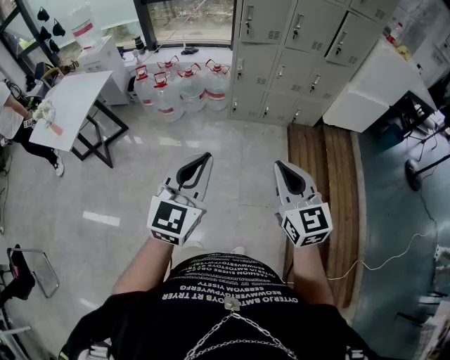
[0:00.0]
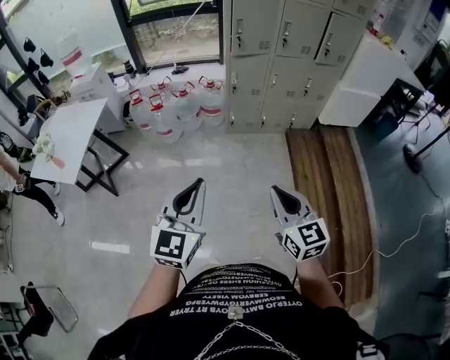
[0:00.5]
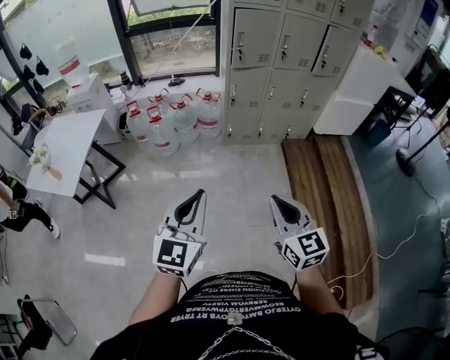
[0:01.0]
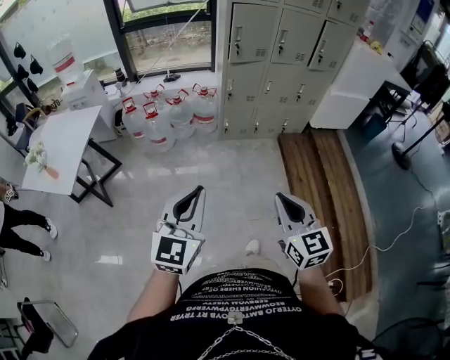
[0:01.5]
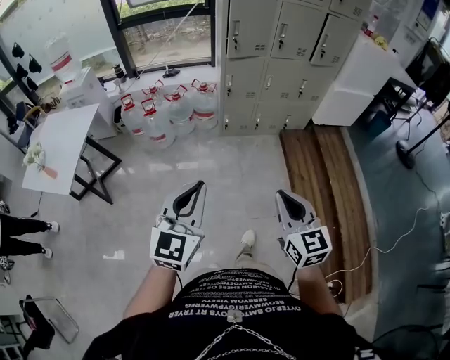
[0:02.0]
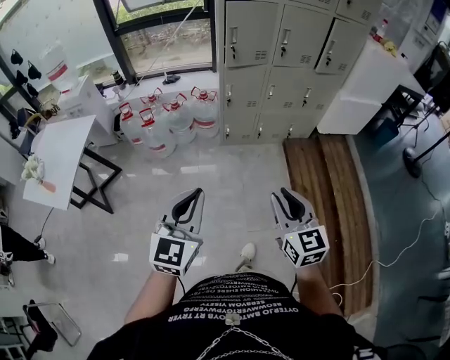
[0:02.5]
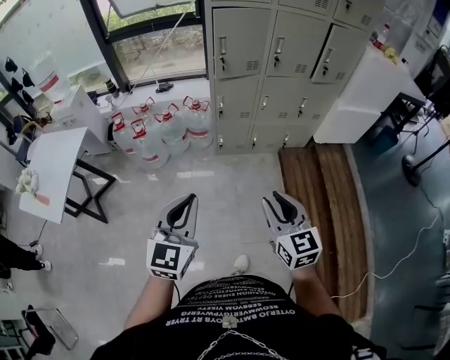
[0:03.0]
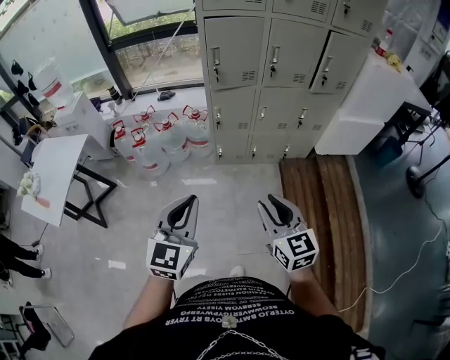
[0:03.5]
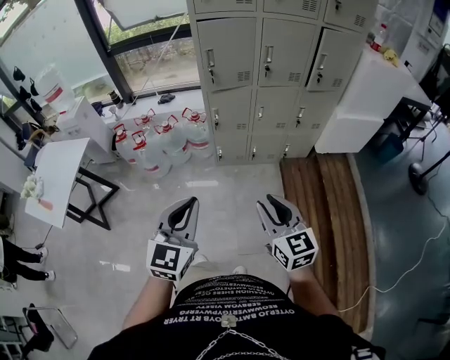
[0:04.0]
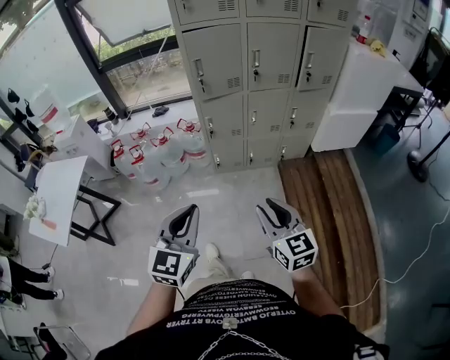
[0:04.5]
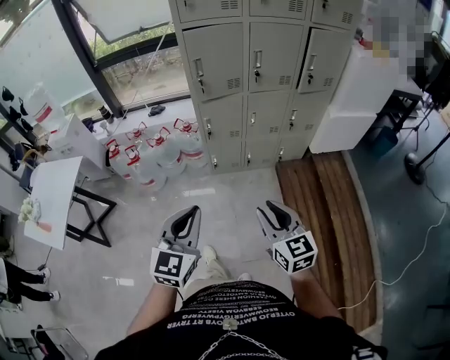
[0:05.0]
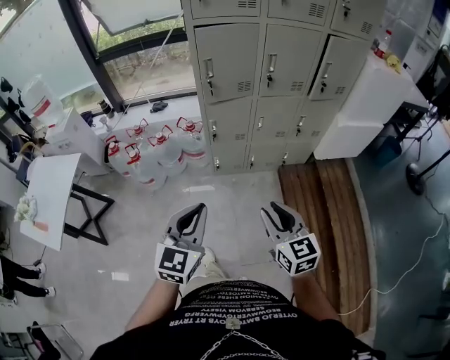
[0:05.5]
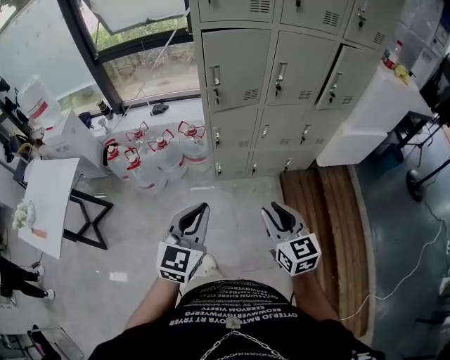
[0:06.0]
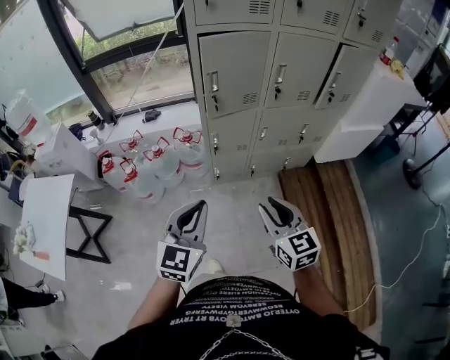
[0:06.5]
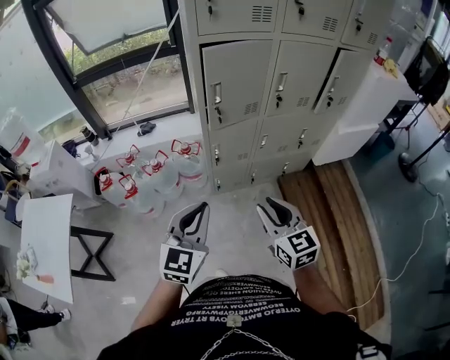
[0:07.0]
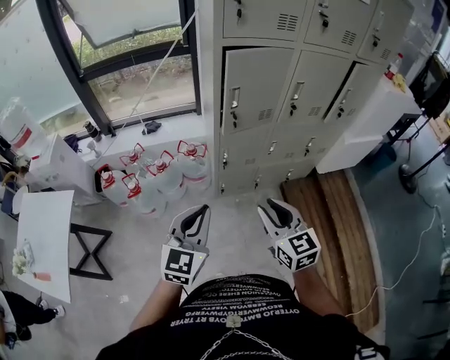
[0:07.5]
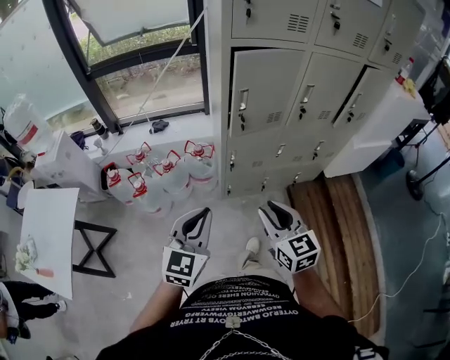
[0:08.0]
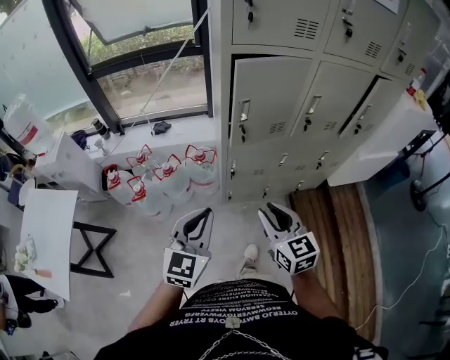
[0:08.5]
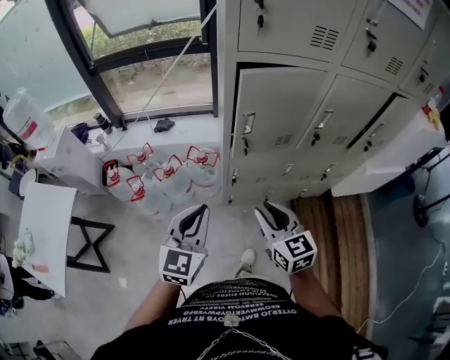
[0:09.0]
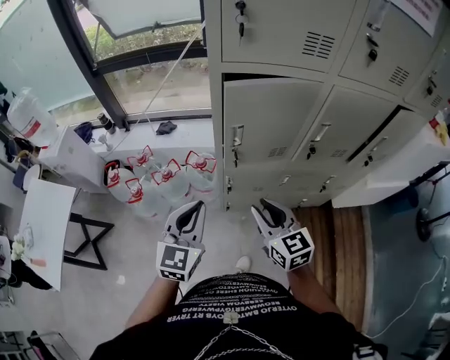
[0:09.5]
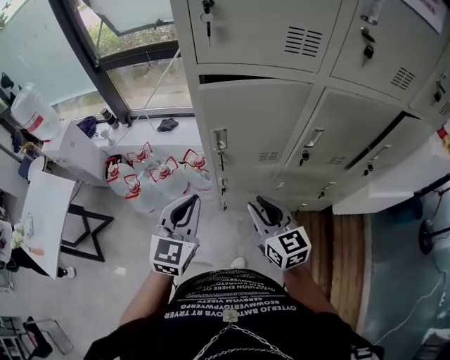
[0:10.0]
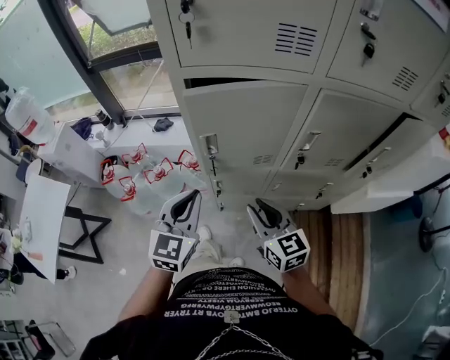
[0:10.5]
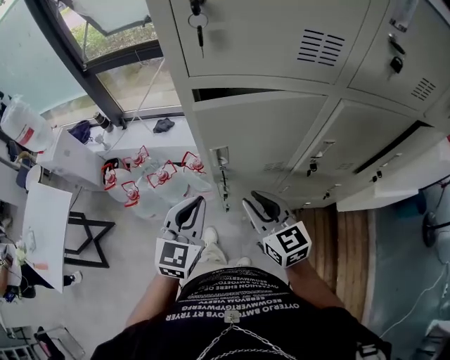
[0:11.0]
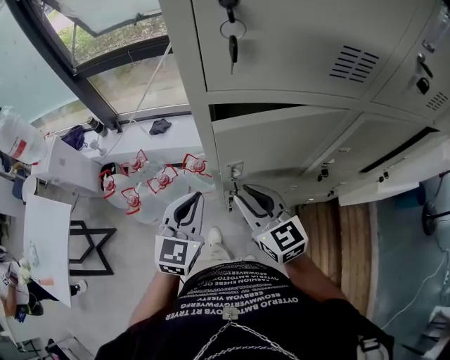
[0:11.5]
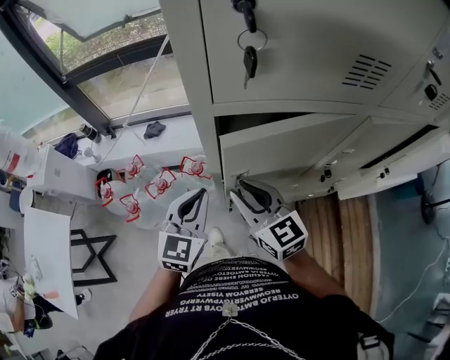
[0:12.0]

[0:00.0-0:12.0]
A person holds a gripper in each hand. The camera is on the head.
0:00.0 to 0:02.0: Both grippers move to the left, some 10 cm.
0:02.0 to 0:04.0: Both grippers travel together forward and to the right, roughly 30 cm. The right gripper opens.
0:04.0 to 0:06.0: The grippers both shift forward by about 15 cm.
0:06.0 to 0:08.0: Both grippers travel together to the left and forward, roughly 20 cm.
0:08.0 to 0:10.0: The grippers both shift forward and to the right by about 25 cm.
0:10.0 to 0:12.0: The left gripper heads forward, covering roughly 15 cm; the right gripper shifts some 20 cm forward and to the left.

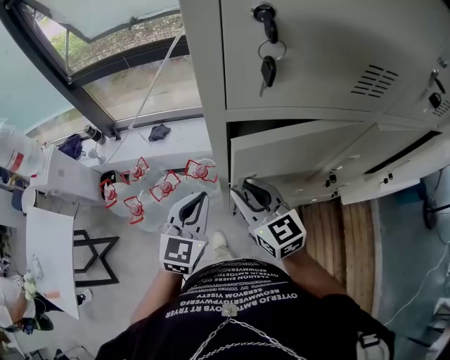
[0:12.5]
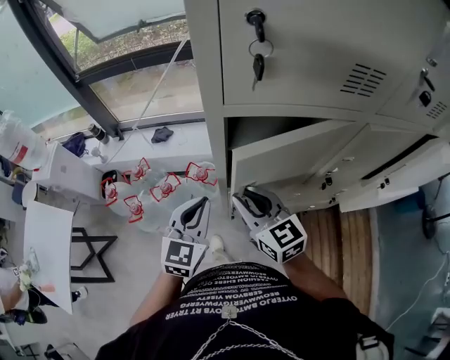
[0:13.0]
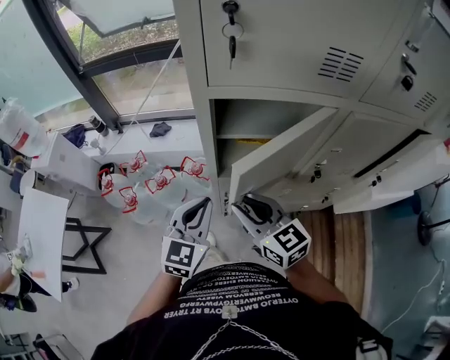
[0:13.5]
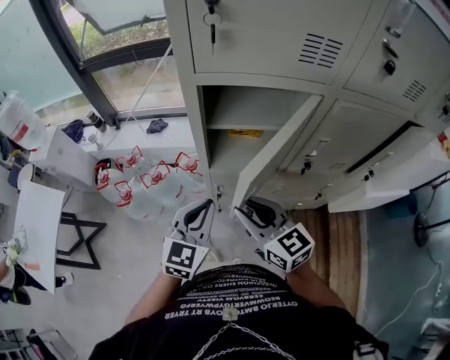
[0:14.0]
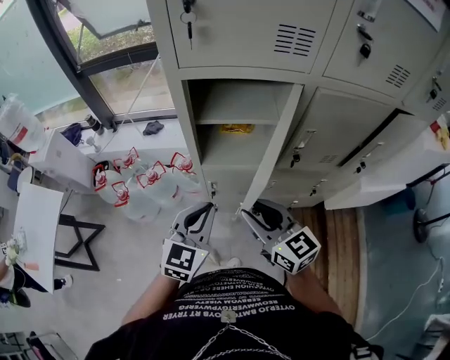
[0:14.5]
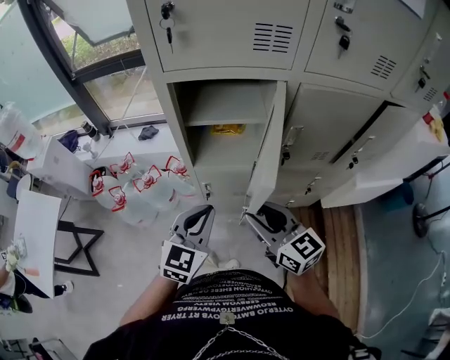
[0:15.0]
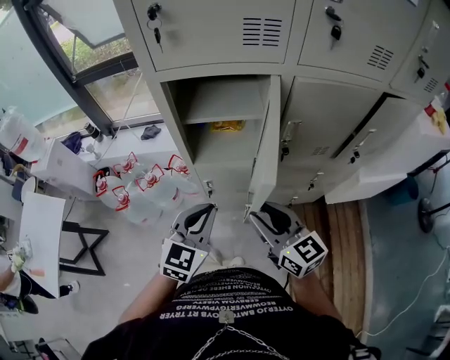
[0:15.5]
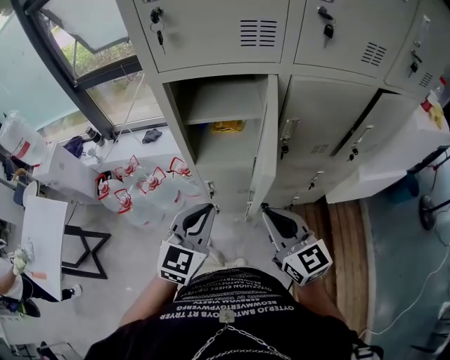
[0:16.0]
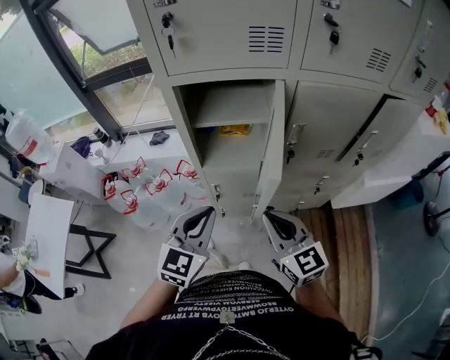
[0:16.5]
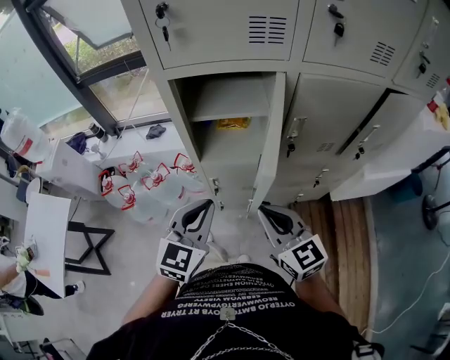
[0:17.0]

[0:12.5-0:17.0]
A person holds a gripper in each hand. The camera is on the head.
0:12.5 to 0:14.5: Both grippers move backward and to the right, roughly 20 cm.
0:14.5 to 0:17.0: The right gripper closes up.

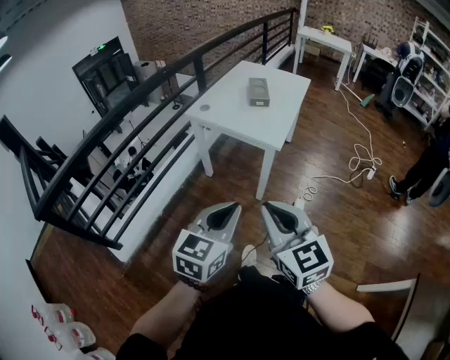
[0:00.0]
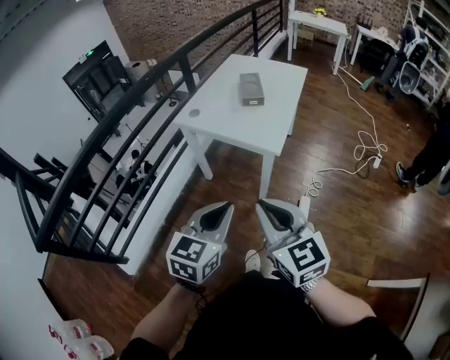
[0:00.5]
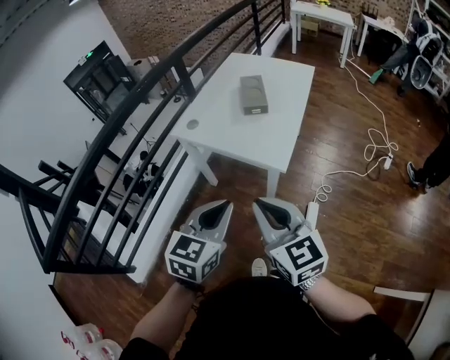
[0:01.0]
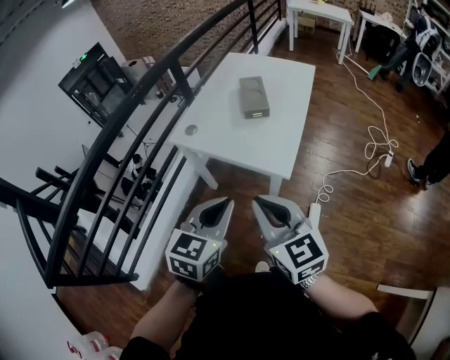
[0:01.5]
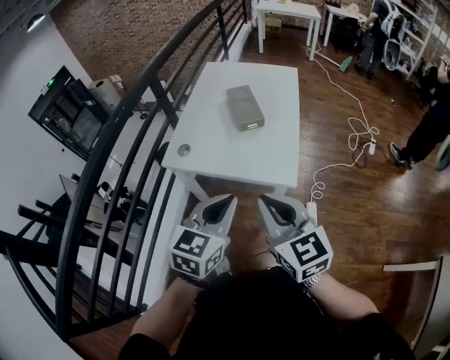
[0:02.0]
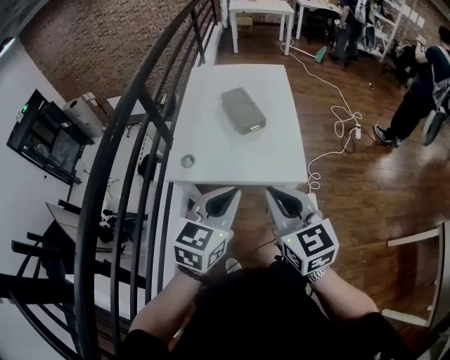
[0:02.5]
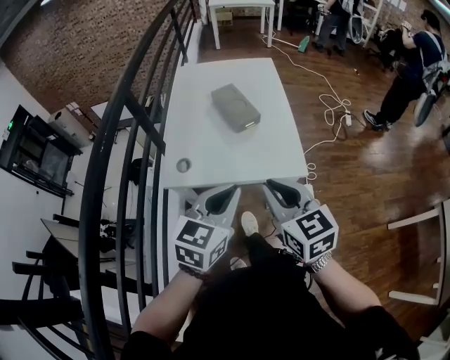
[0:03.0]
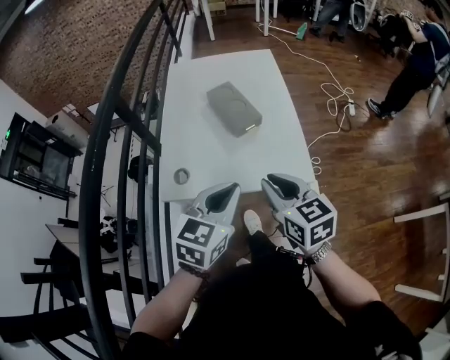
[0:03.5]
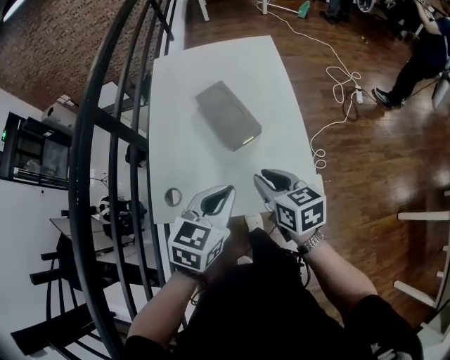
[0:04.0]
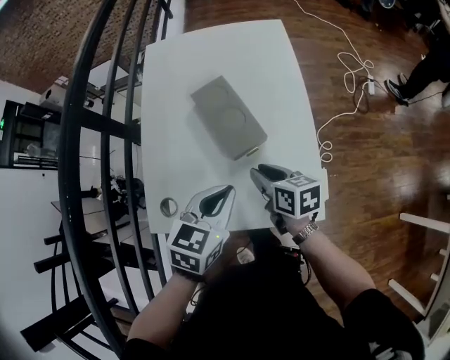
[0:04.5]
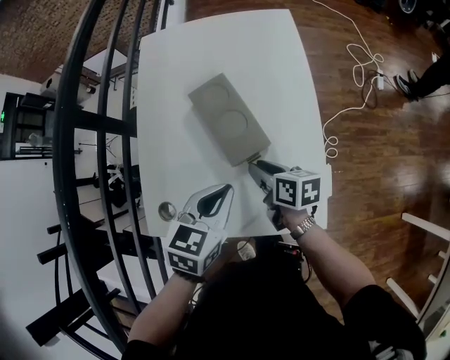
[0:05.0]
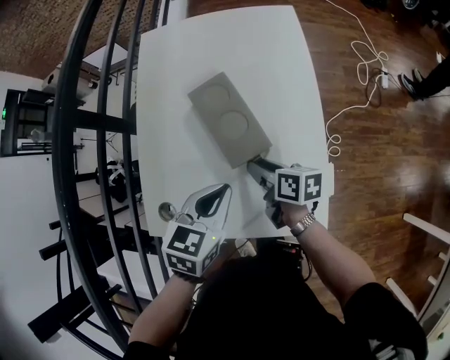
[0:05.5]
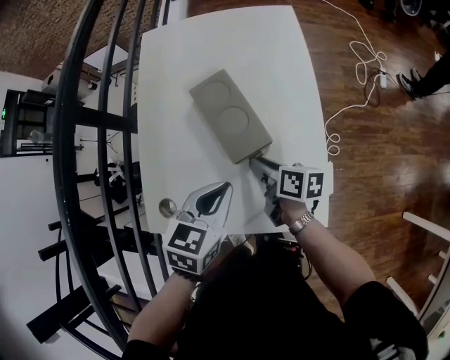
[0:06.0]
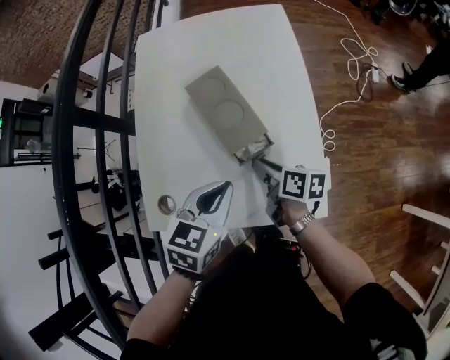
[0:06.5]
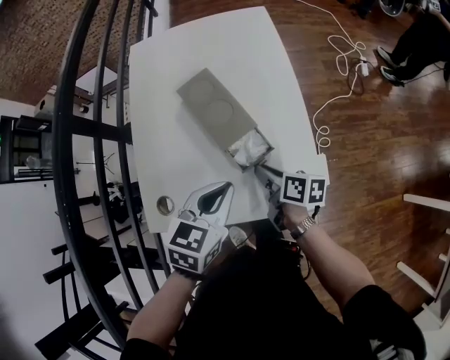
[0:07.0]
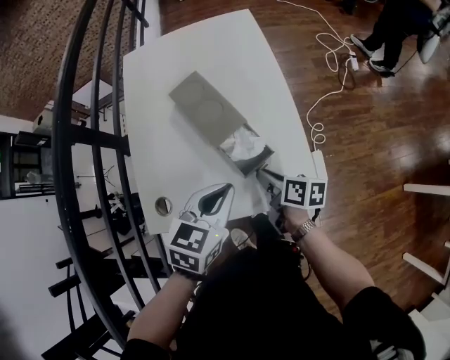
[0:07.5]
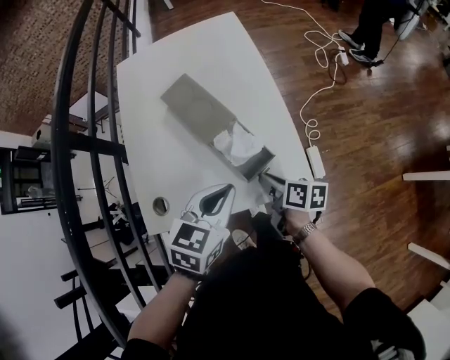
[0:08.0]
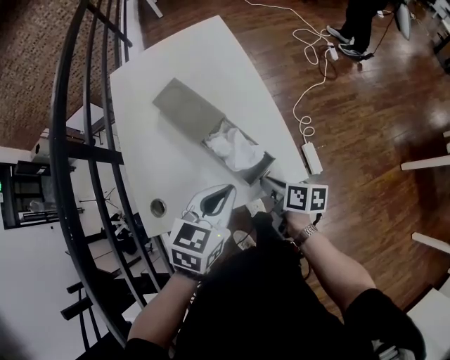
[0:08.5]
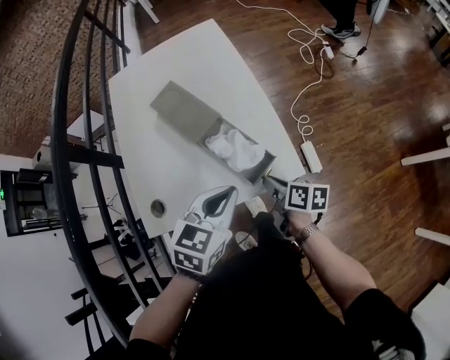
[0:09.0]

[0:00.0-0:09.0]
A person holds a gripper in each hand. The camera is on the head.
0:00.0 to 0:02.0: The two grippers go some 35 cm forward.
0:02.0 to 0:04.5: Both grippers move forward and downward, some 35 cm. The left gripper rotates some 20 degrees, while the right gripper rotates around the line of its fingers by approximately 40 degrees, clockwise from behind.
0:04.5 to 0:07.0: The right gripper moves some 5 cm, and rotates approximately 20 degrees.
0:07.0 to 0:09.0: Both grippers travel together backward and to the right, roughly 10 cm.

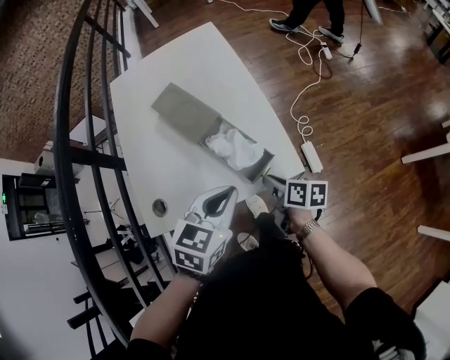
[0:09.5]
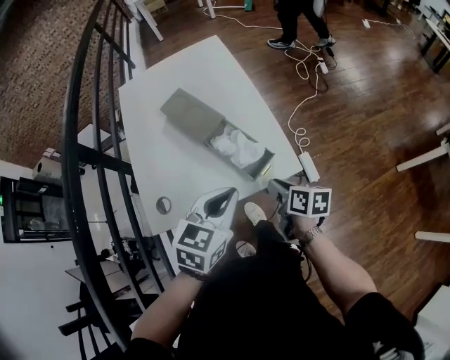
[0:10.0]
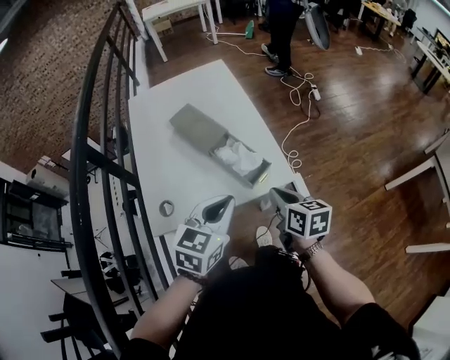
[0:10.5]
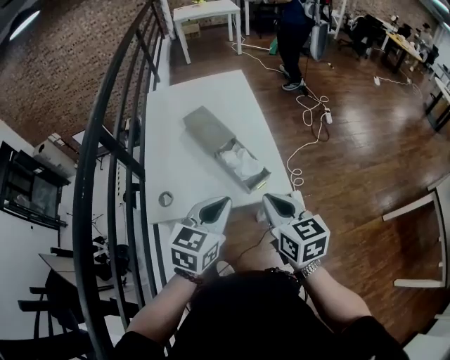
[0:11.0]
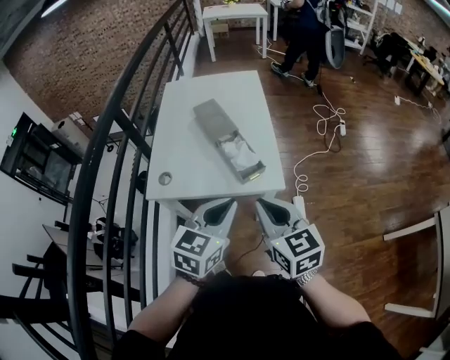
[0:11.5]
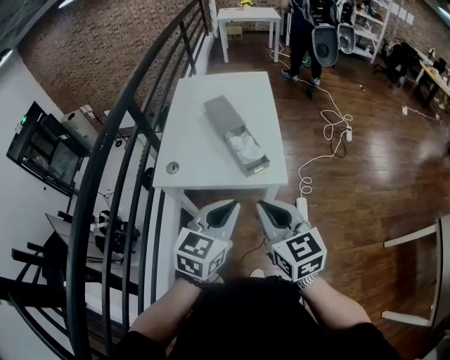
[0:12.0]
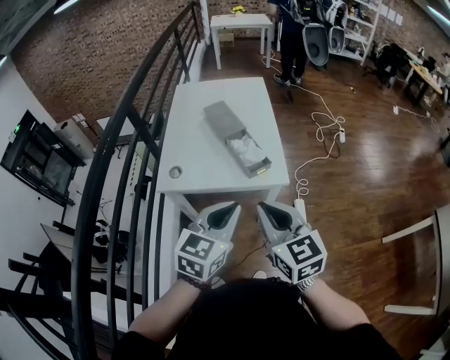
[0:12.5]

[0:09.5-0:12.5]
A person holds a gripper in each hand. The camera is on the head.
0:09.5 to 0:11.0: The left gripper goes some 10 cm upward and backward. The right gripper goes about 25 cm upward and backward, and twists approximately 50 degrees counterclockwise, seen from behind.
0:11.0 to 0:12.5: The left gripper travels backward by approximately 15 cm; the right gripper heads backward and upward, covering some 15 cm.
